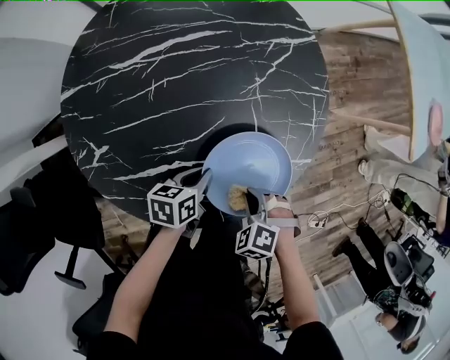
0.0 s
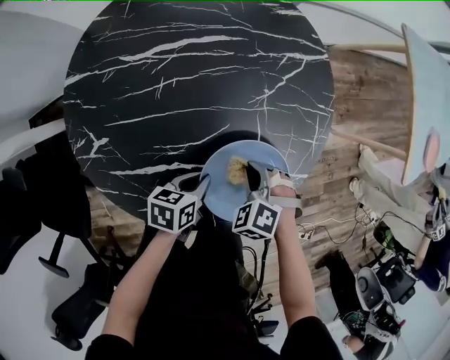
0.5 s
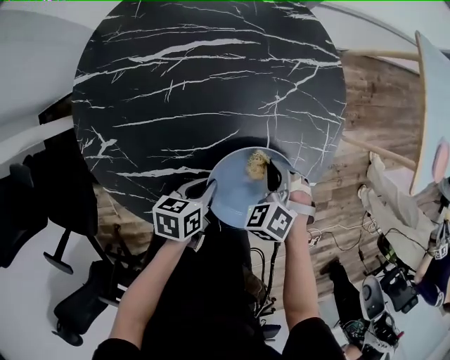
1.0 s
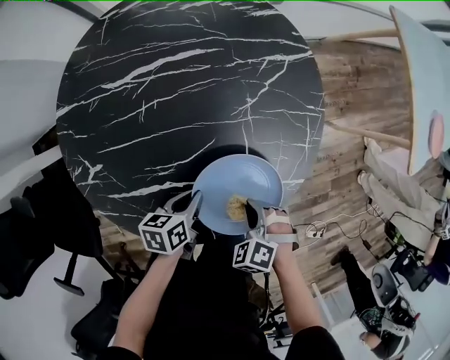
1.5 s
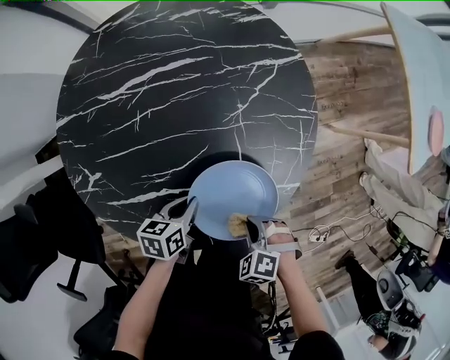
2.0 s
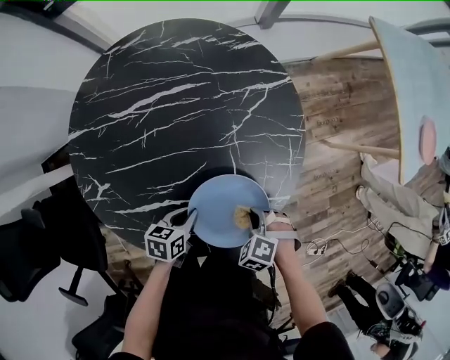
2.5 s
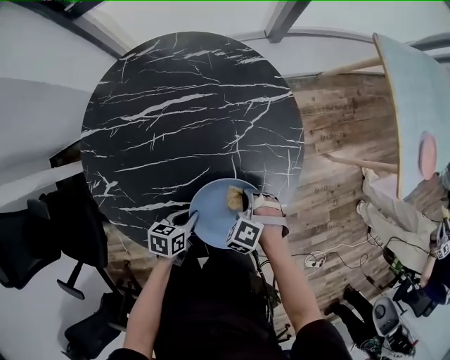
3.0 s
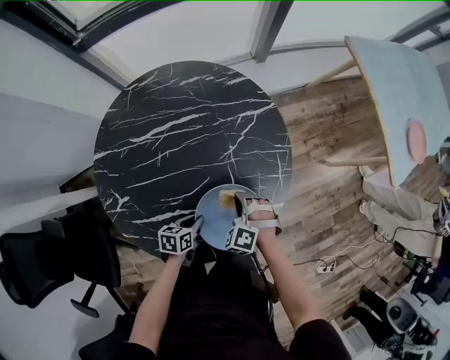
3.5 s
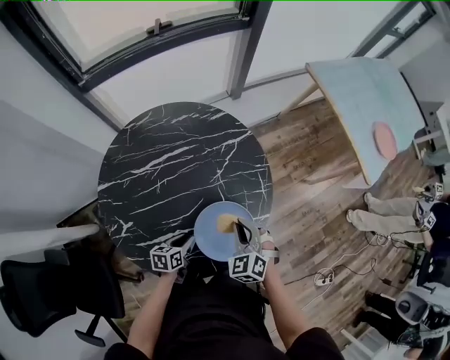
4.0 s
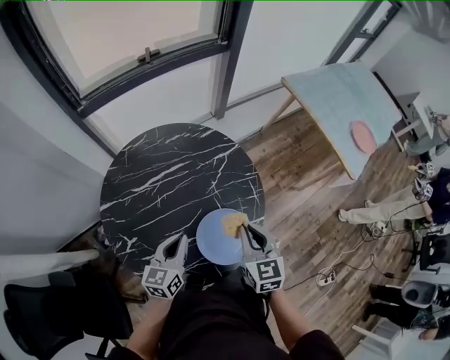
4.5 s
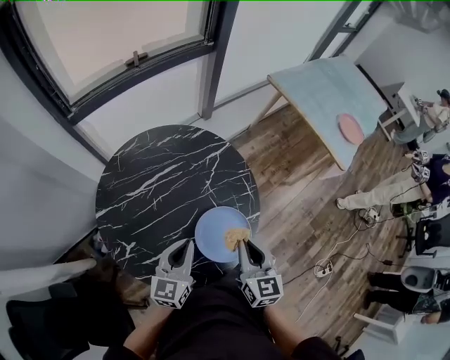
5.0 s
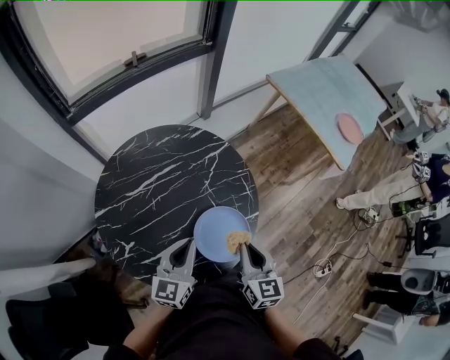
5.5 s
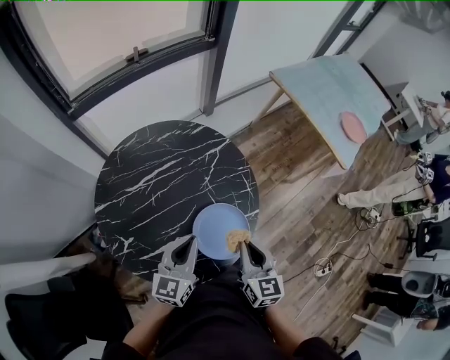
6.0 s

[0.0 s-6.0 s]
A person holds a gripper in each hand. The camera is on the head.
2.0 to 4.0 s: The right gripper goes some 20 cm upward, and points its fingers approximately 40 degrees further upward; the left gripper goes about 5 cm upward, and opens its fingers.
4.0 to 6.0 s: The left gripper is displaced upward by approximately 25 cm, tilts its fingers about 30 degrees upward, and closes, while the right gripper heads upward and backward, covering about 15 cm, and rolls clockwise, seen from behind, by about 50 degrees.

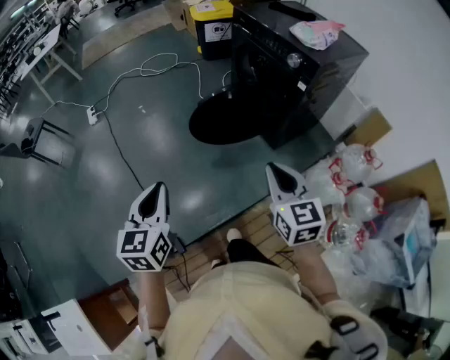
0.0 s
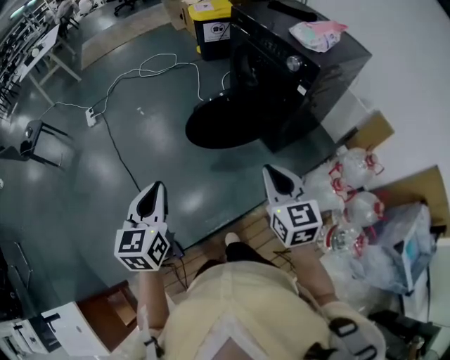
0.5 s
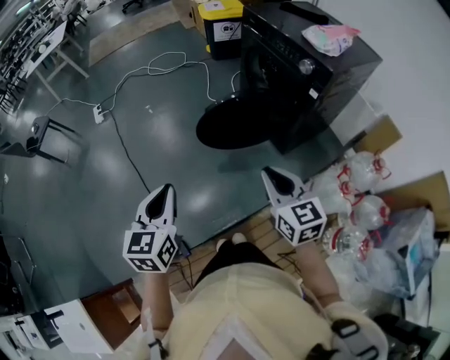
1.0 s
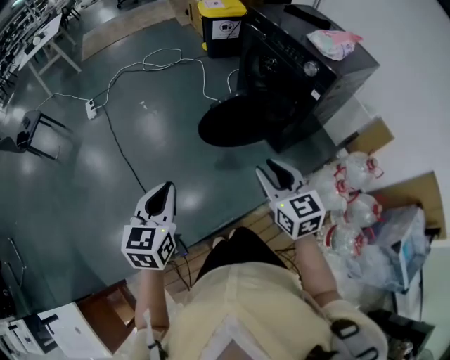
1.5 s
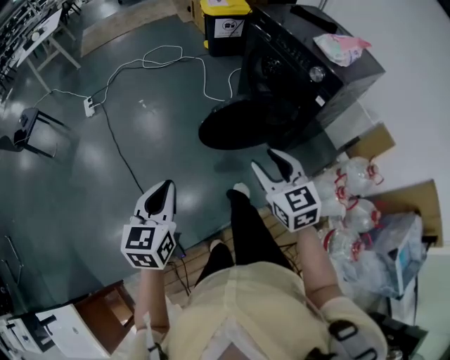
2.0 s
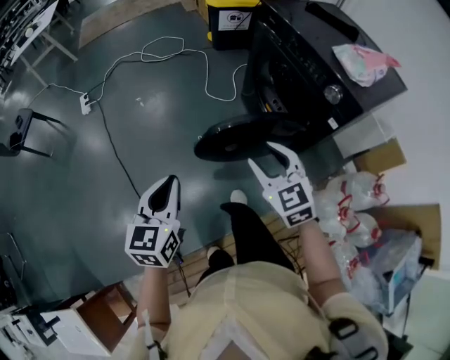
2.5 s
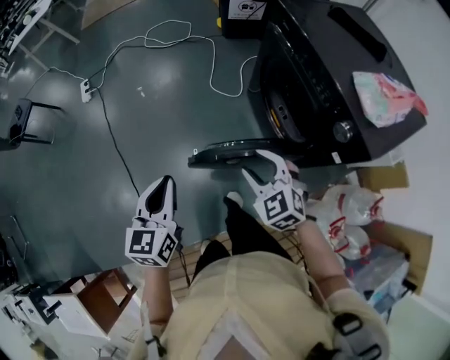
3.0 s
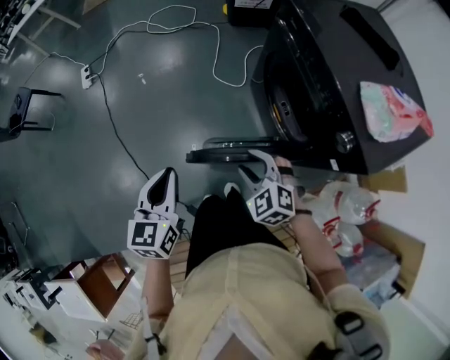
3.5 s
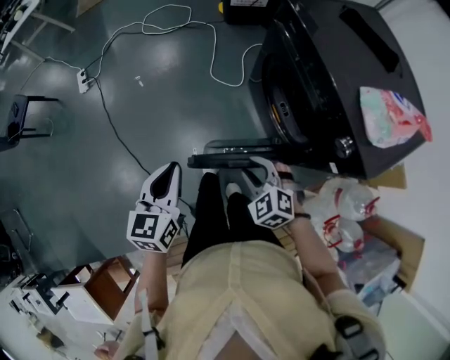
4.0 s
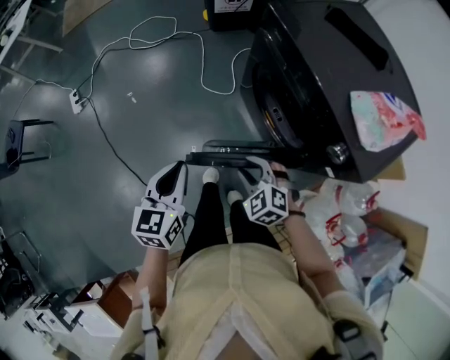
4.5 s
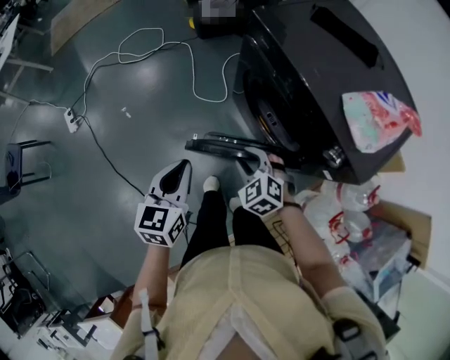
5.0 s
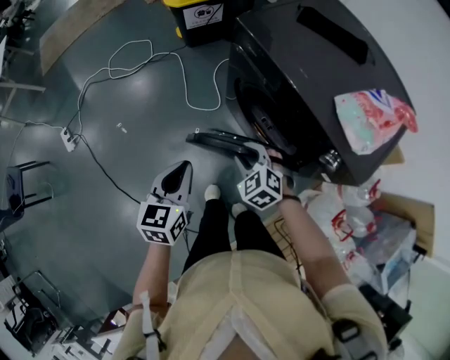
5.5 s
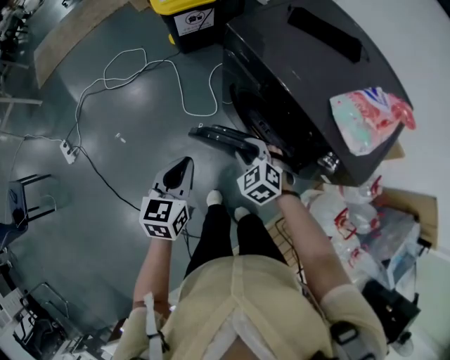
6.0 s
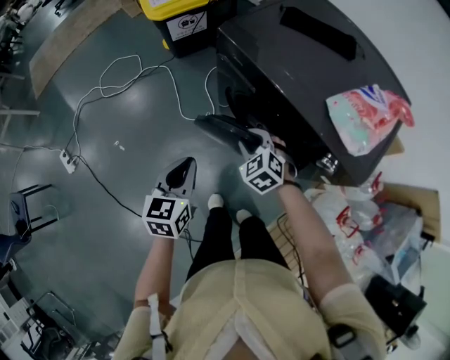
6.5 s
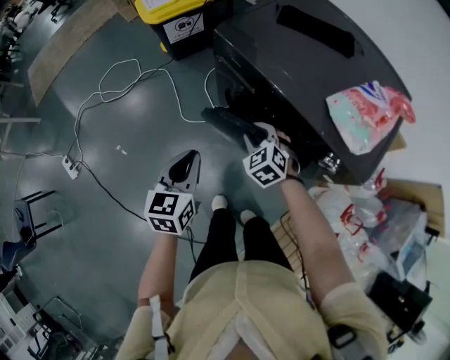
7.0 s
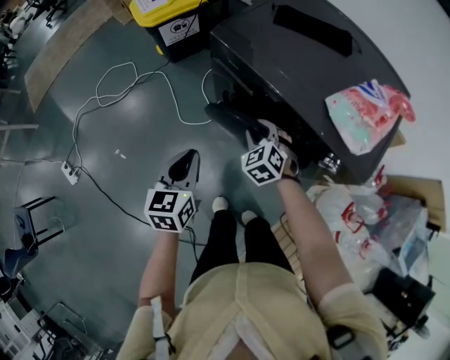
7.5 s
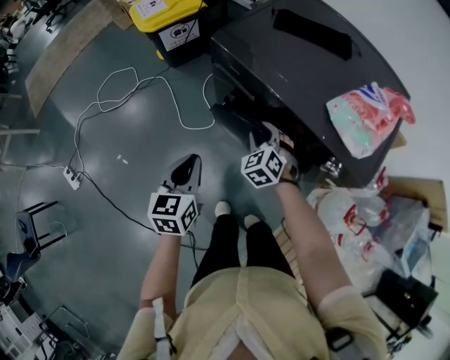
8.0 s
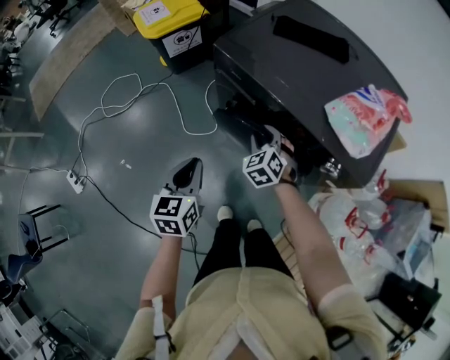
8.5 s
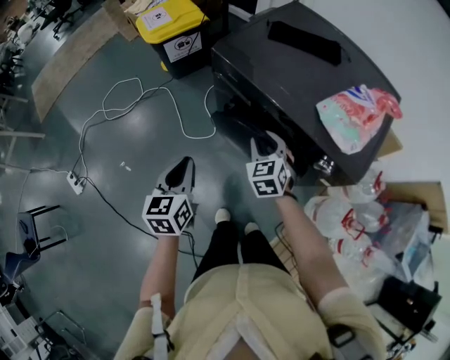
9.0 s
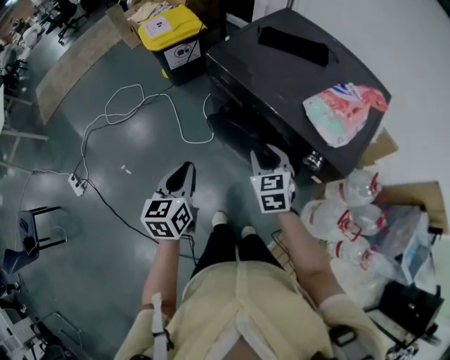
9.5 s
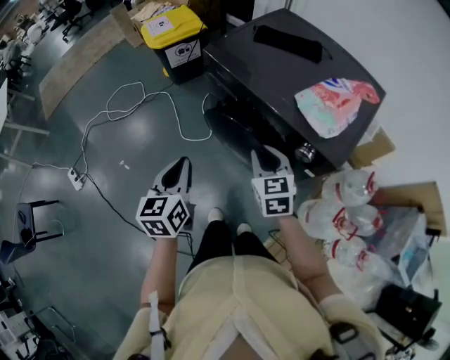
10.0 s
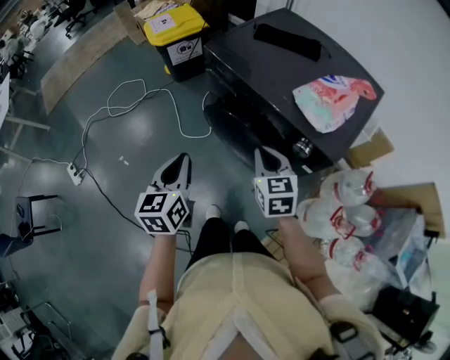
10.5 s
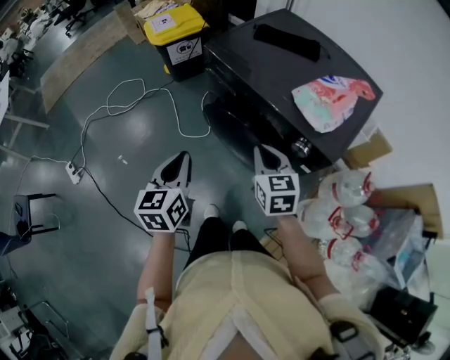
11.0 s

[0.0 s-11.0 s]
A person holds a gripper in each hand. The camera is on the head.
0.0 to 2.0 s: The left gripper goes roughly 5 cm forward, while the right gripper shifts some 10 cm forward and to the left, and opens its fingers.
2.0 to 3.5 s: The left gripper heads forward and to the right, covering roughly 25 cm; the right gripper shifts roughly 25 cm forward and downward, and turns by roughly 40 degrees.
3.5 to 5.5 s: Both grippers travel together forward, about 15 cm. The right gripper turns by some 20 degrees; the left gripper turns by about 30 degrees.
5.5 to 7.5 s: Both grippers move forward, approximately 10 cm. The right gripper swivels about 20 degrees.
7.5 to 9.0 s: The right gripper shifts roughly 5 cm upward, and swivels about 20 degrees.
9.0 to 11.0 s: Both grippers move backward, upward and to the right, approximately 15 cm. The right gripper closes its fingers.

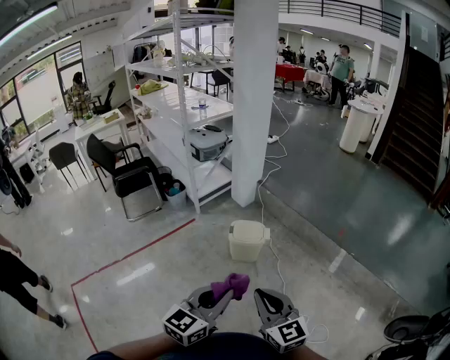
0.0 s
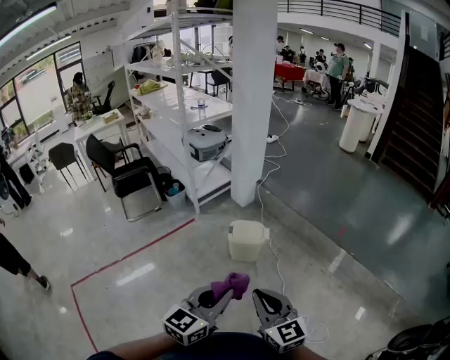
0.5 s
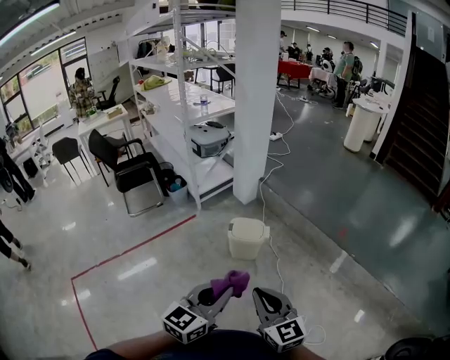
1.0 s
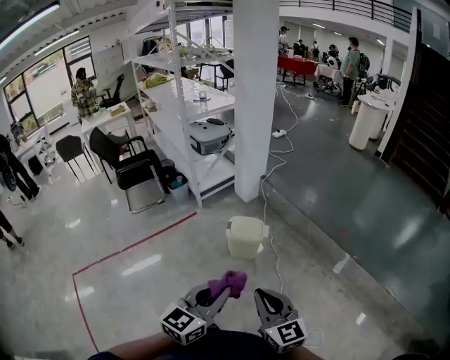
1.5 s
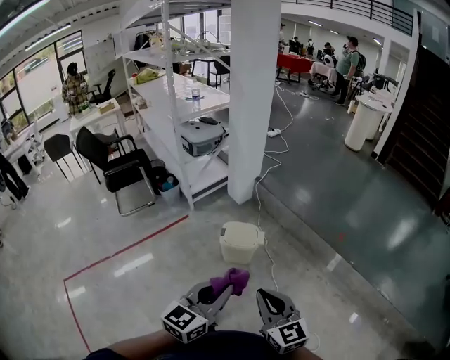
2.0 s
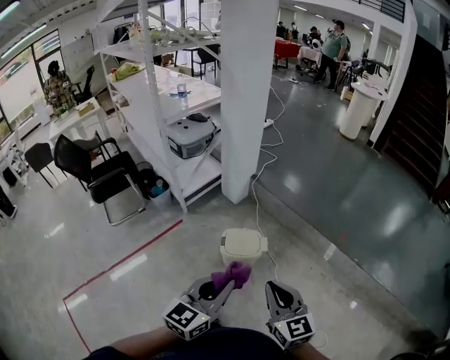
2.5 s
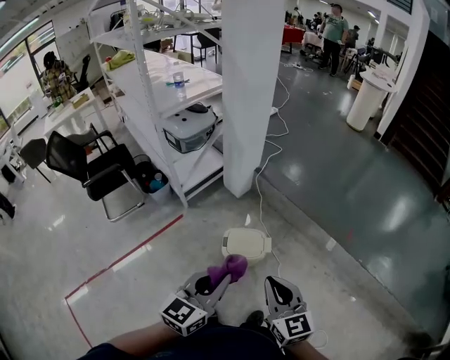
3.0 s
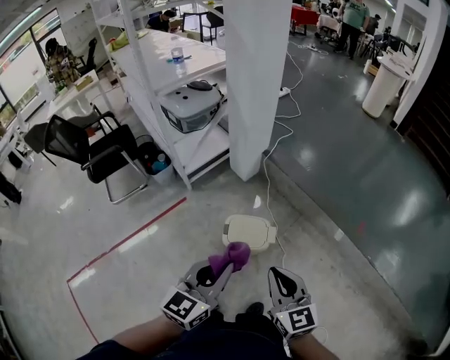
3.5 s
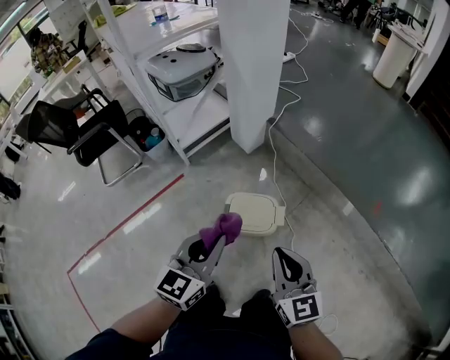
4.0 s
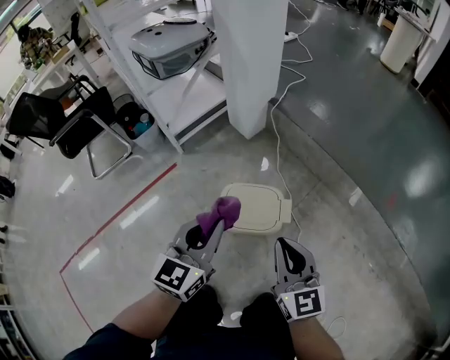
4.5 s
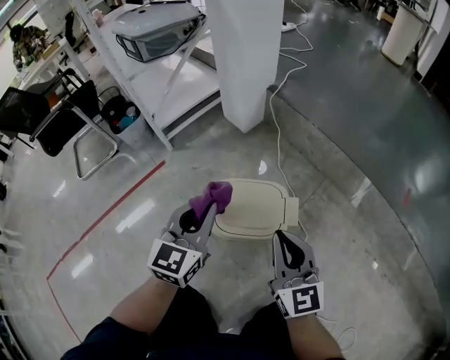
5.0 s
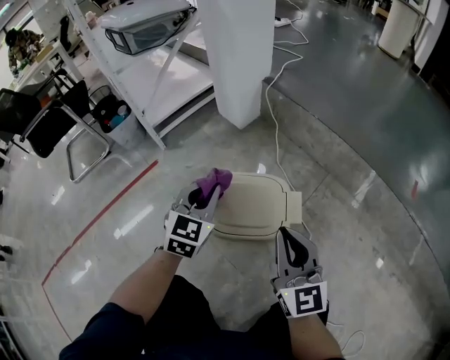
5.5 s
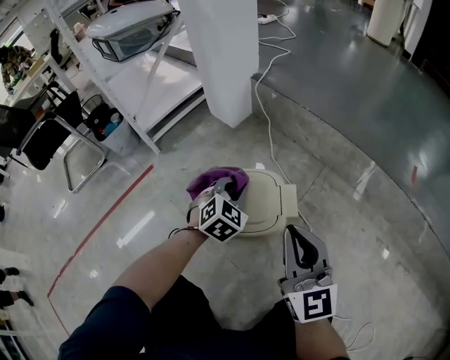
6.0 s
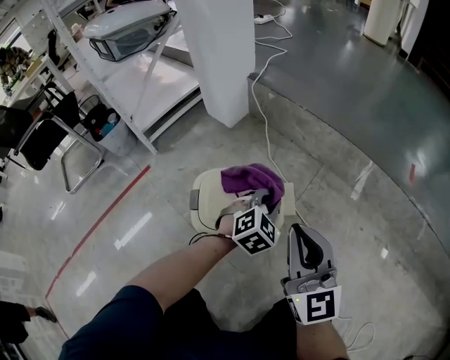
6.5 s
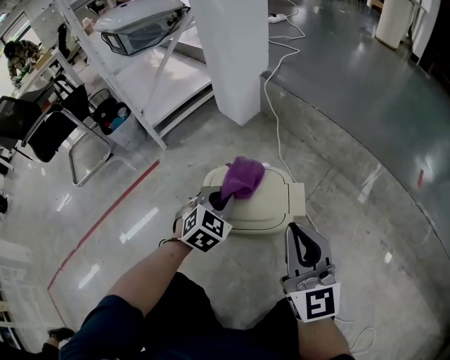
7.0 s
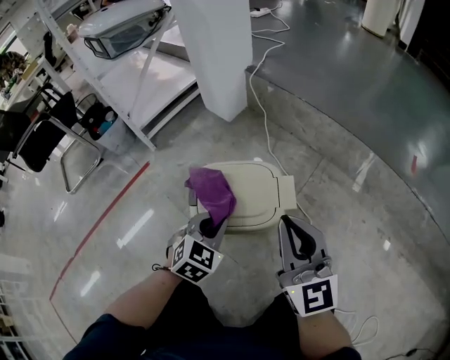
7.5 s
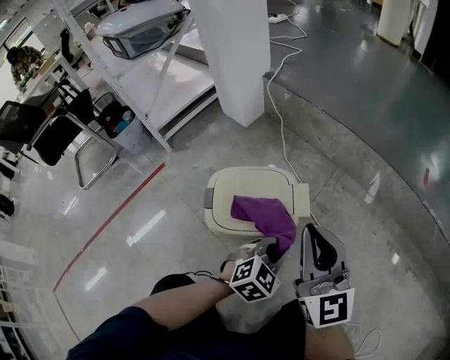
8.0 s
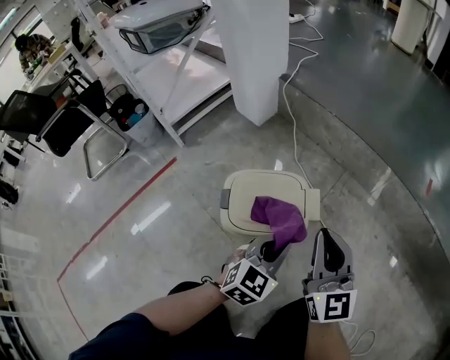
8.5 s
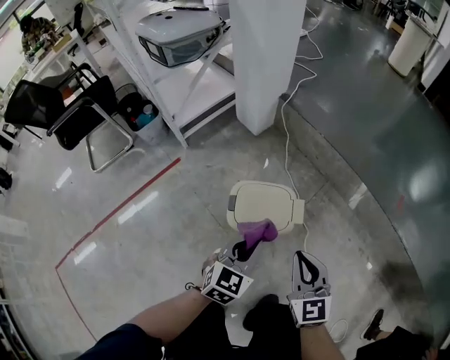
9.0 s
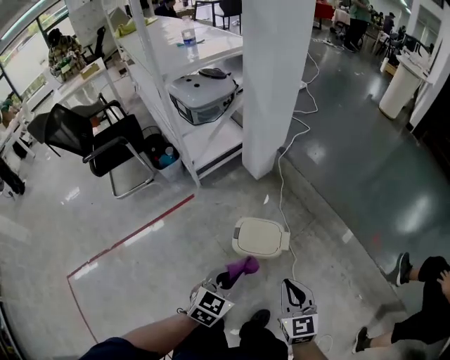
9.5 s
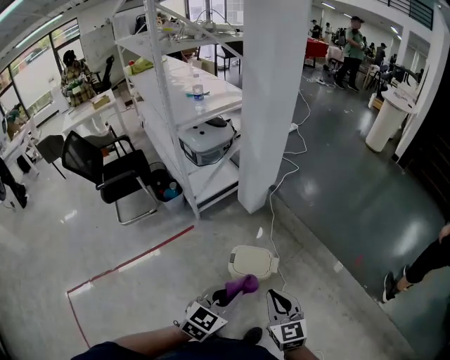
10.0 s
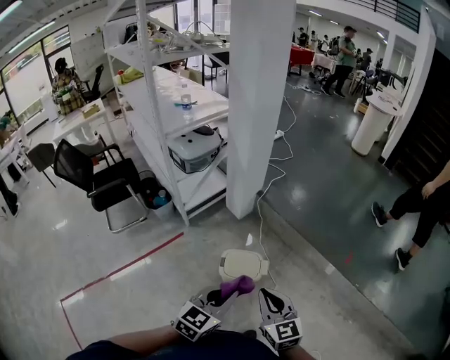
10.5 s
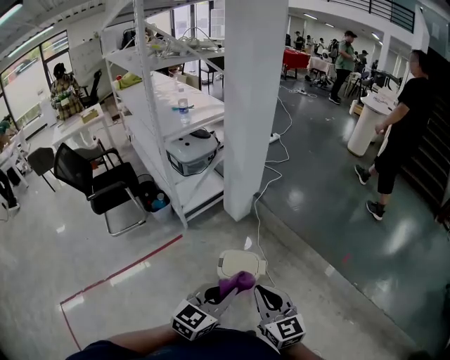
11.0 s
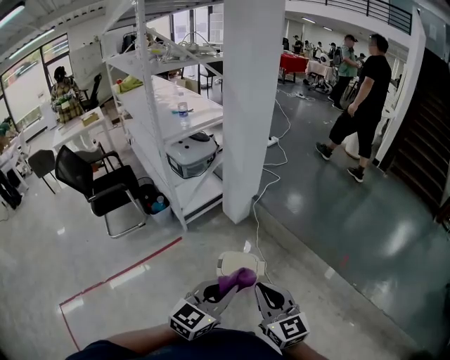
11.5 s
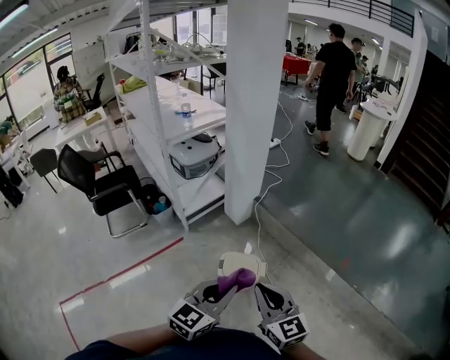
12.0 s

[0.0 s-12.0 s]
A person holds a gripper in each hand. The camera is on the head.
0.0 to 2.0 s: The grippers both shift forward and to the right by roughly 15 cm.
2.0 to 4.0 s: The two grippers go roughly 40 cm forward and downward.
4.0 to 6.0 s: The left gripper travels downward and forward by approximately 50 cm, and swivels approximately 40 degrees, while the right gripper travels downward by about 35 cm.
6.0 to 8.0 s: The left gripper moves left and right over roughly 15 cm, changing direction 2 times.
8.0 to 10.0 s: Both grippers move upward, roughly 60 cm. The right gripper swivels roughly 30 degrees; the left gripper swivels approximately 30 degrees.
10.0 to 12.0 s: Both grippers move upward, roughly 10 cm.
